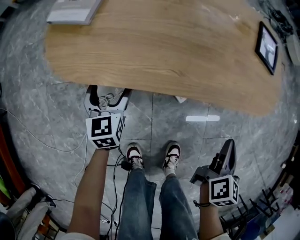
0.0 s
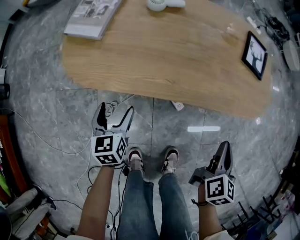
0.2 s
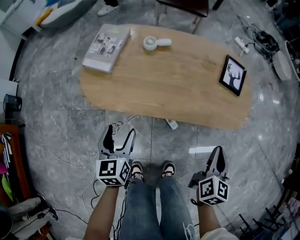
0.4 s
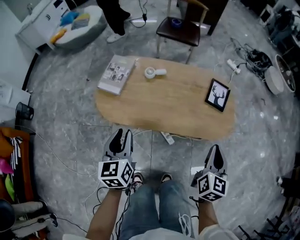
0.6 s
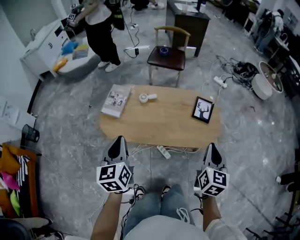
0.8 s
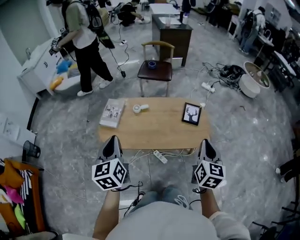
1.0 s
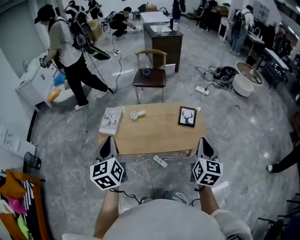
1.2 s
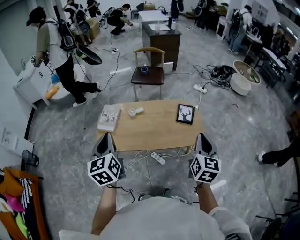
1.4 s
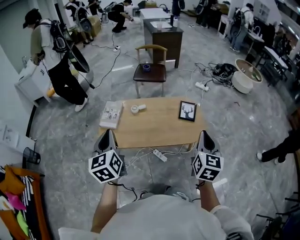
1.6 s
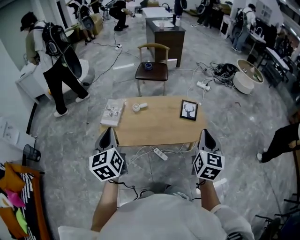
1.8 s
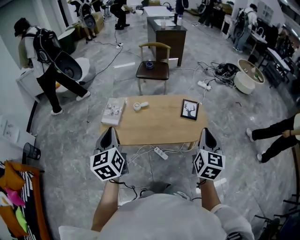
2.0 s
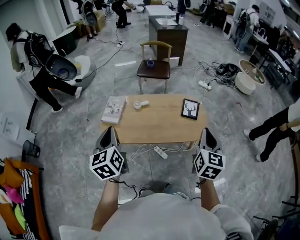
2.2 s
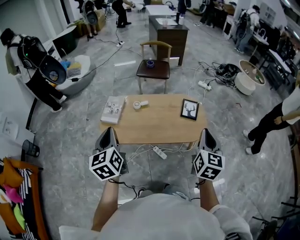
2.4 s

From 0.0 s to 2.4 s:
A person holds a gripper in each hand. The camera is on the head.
From 0.0 s to 1.2 s: Both grippers move upward, roughly 50 cm. The right gripper turns by some 30 degrees; the left gripper rotates some 20 degrees, and closes up.
From 1.2 s to 2.4 s: The grippers move only a little.

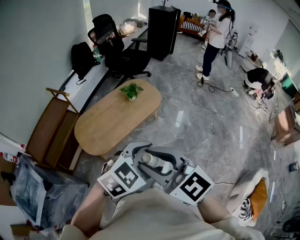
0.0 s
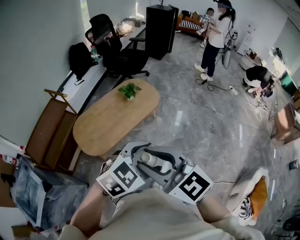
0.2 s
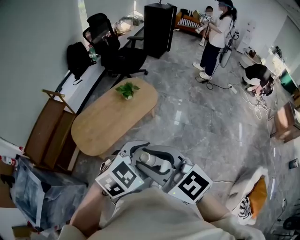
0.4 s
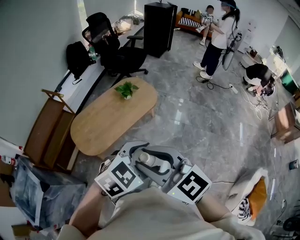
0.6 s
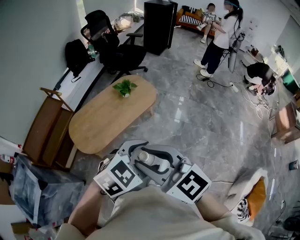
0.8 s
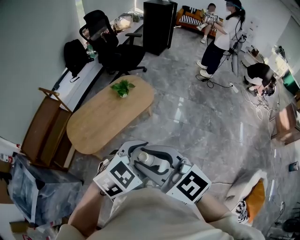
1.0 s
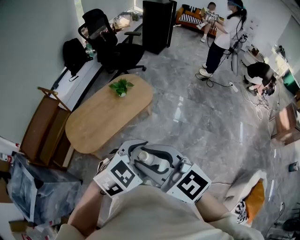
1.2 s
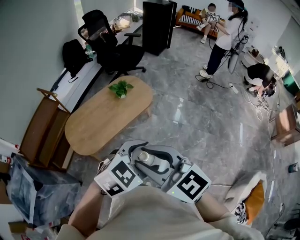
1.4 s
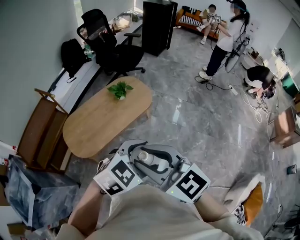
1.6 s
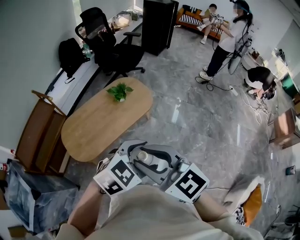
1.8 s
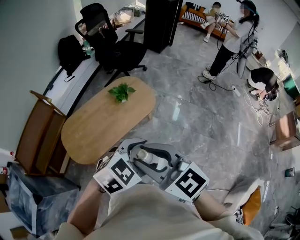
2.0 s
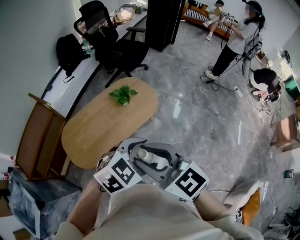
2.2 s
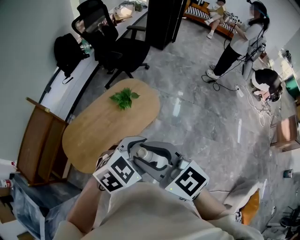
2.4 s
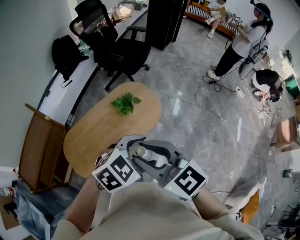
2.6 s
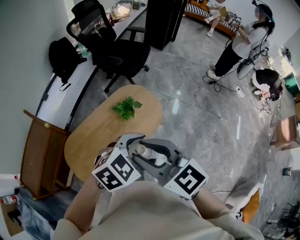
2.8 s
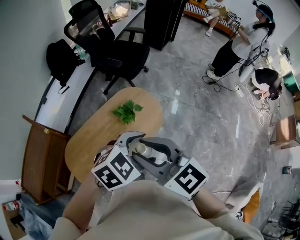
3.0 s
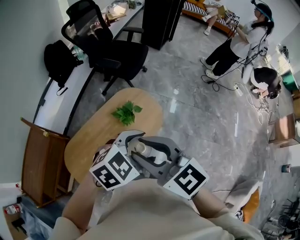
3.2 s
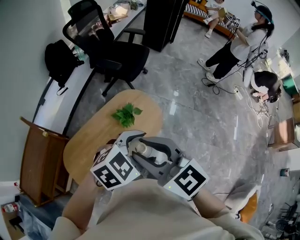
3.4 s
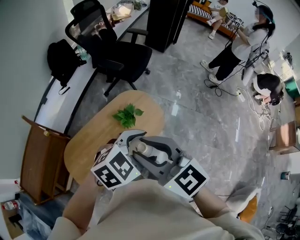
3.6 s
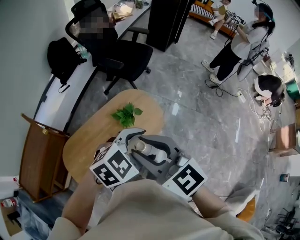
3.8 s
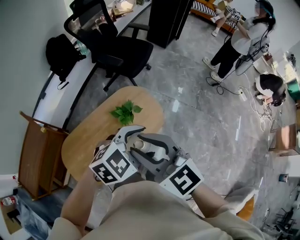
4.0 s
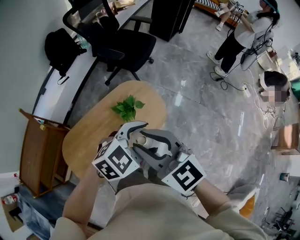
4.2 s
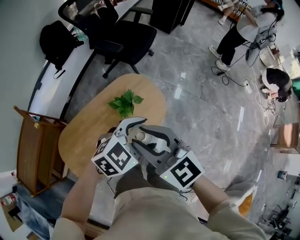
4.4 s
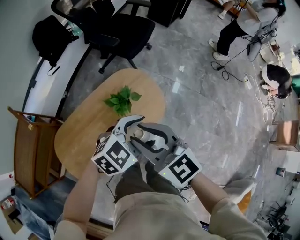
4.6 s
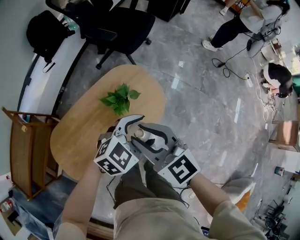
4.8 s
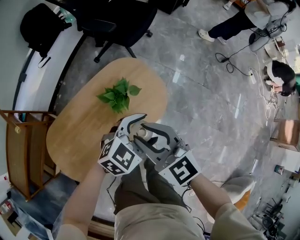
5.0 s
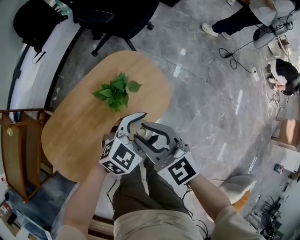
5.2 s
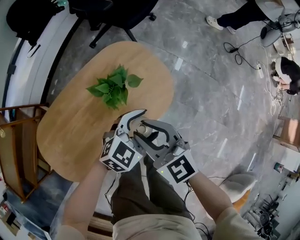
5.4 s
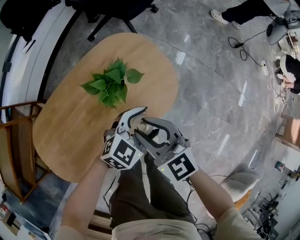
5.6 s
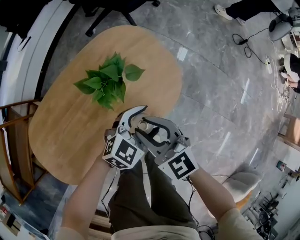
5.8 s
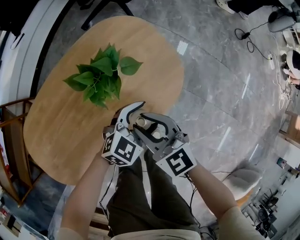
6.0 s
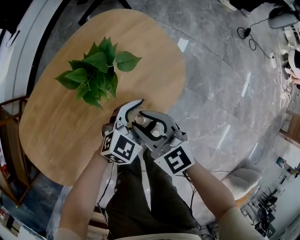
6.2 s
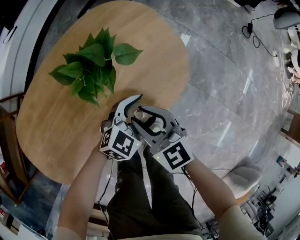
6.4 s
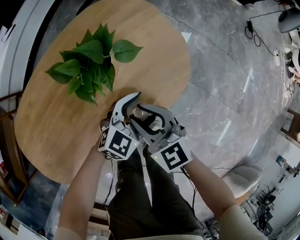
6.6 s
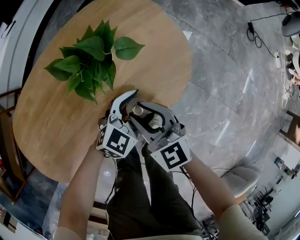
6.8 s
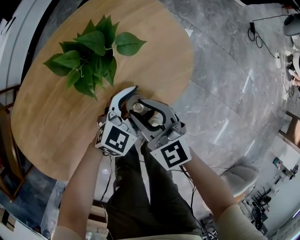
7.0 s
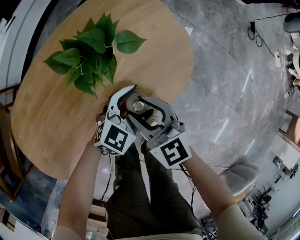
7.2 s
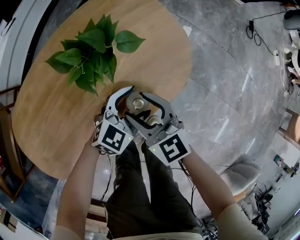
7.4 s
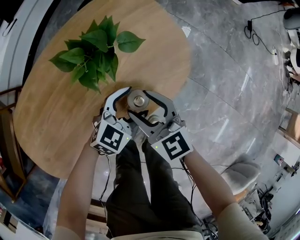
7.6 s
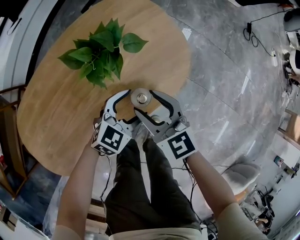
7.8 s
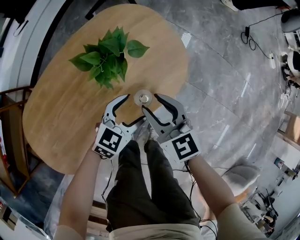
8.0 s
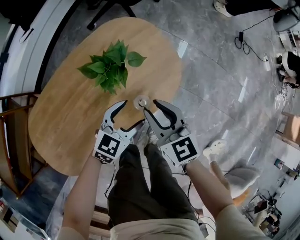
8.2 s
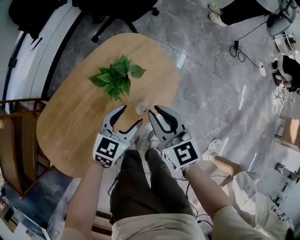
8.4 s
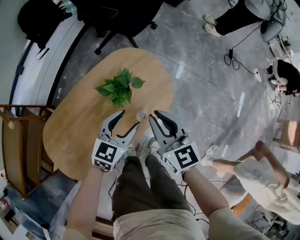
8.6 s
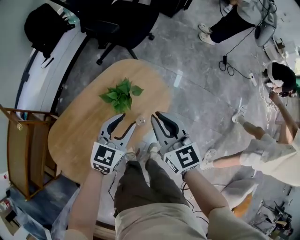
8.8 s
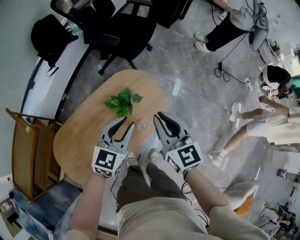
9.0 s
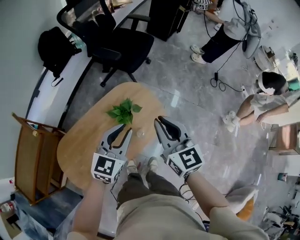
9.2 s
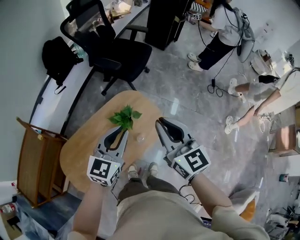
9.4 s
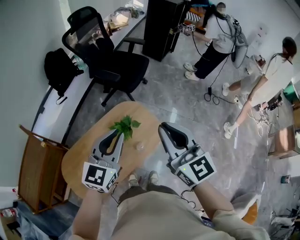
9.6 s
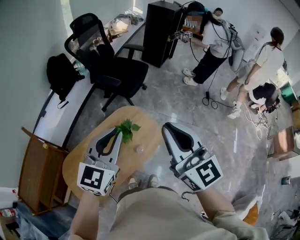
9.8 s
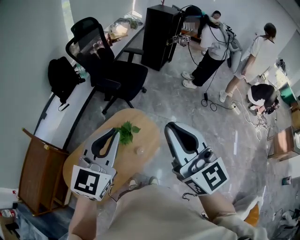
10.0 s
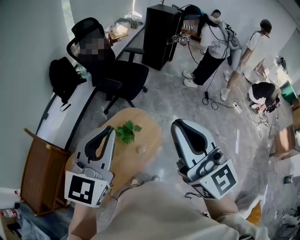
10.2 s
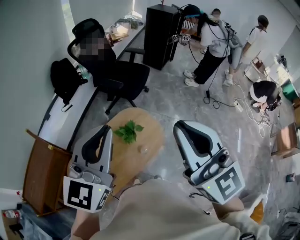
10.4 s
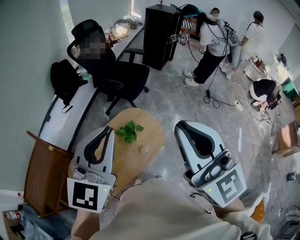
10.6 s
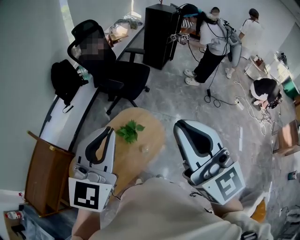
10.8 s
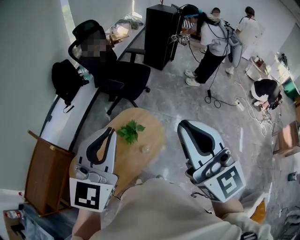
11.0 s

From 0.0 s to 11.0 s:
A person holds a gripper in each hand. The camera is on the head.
From 0.0 s to 1.6 s: Both grippers move forward and to the right, some 15 cm.
From 1.6 s to 3.2 s: The pair of grippers is taken forward and to the left, some 40 cm.
From 3.2 s to 4.8 s: Both grippers travel together downward and forward, approximately 25 cm.
From 4.8 s to 6.2 s: Both grippers travel together downward, some 40 cm.
From 6.2 s to 7.8 s: The left gripper moves approximately 5 cm. Meanwhile the right gripper opens its fingers.
From 7.8 s to 9.4 s: Both grippers move upward, approximately 50 cm. The right gripper changes its angle by some 20 degrees, and closes up. The left gripper turns by roughly 30 degrees, and closes.
From 9.4 s to 11.0 s: The left gripper travels upward by approximately 25 cm. The right gripper goes about 25 cm upward and backward.

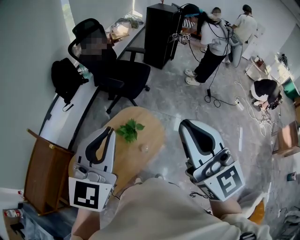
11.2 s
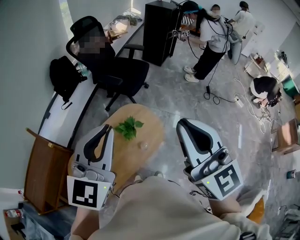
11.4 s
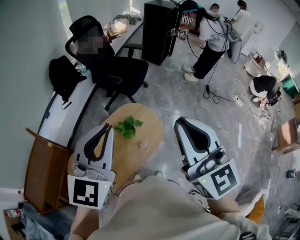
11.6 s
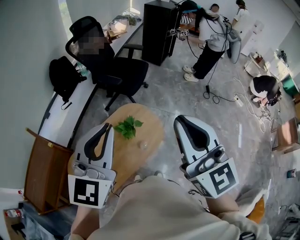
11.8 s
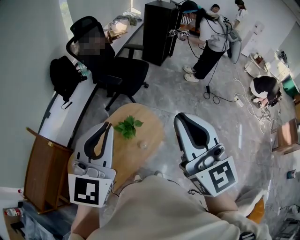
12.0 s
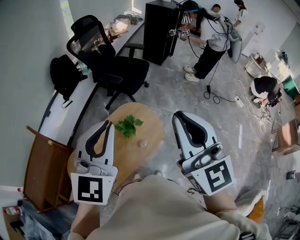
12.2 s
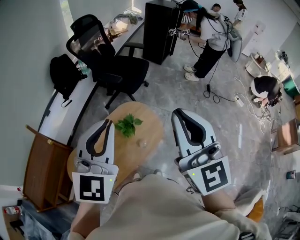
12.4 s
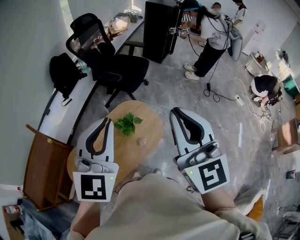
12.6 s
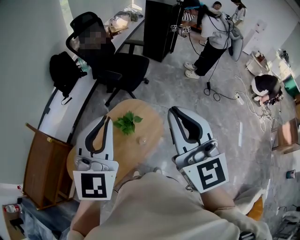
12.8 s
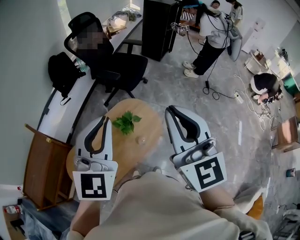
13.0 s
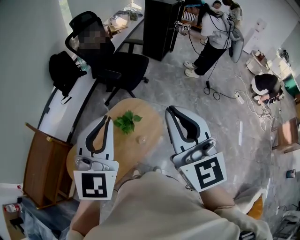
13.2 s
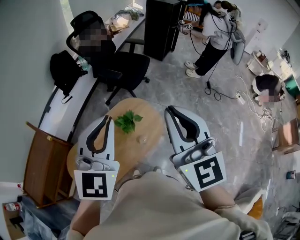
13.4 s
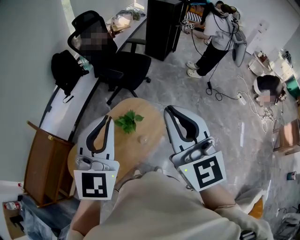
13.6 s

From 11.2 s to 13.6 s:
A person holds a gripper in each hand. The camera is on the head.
From 11.2 s to 13.6 s: The grippers stay close to where they were, moving slightly.

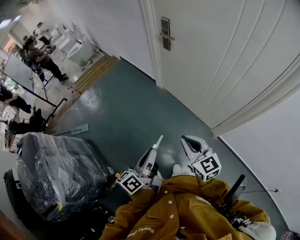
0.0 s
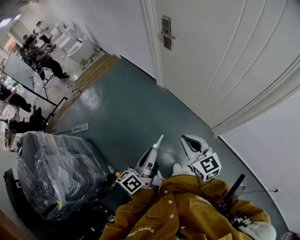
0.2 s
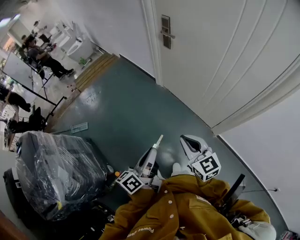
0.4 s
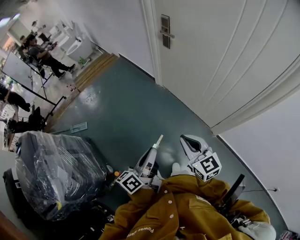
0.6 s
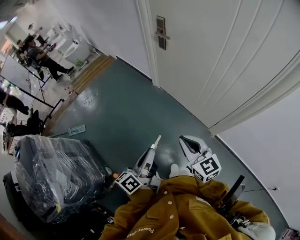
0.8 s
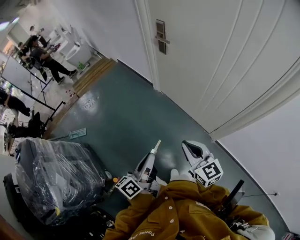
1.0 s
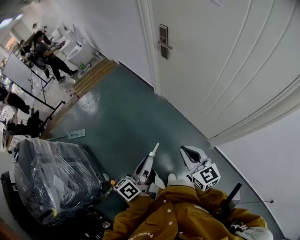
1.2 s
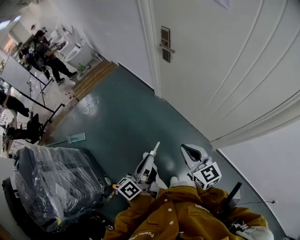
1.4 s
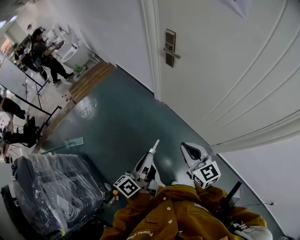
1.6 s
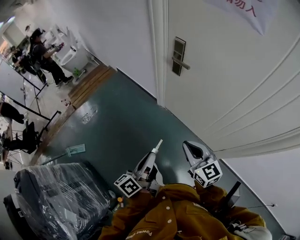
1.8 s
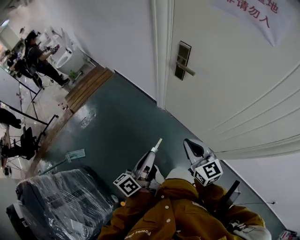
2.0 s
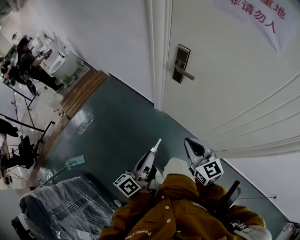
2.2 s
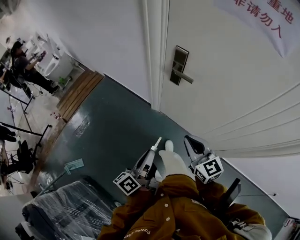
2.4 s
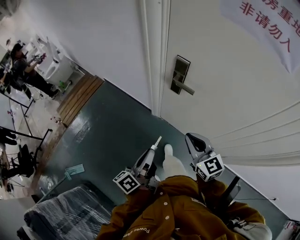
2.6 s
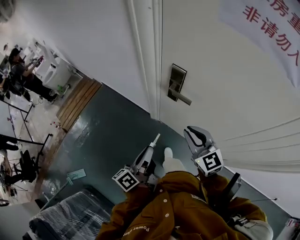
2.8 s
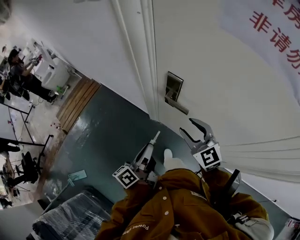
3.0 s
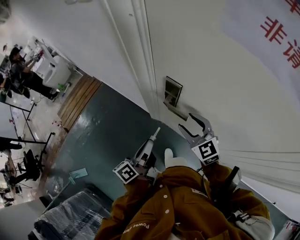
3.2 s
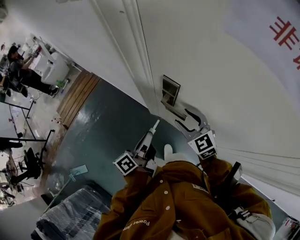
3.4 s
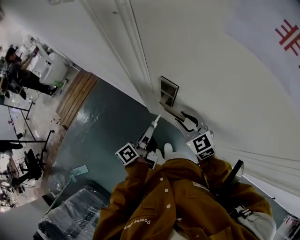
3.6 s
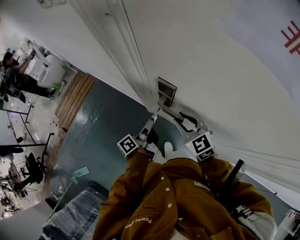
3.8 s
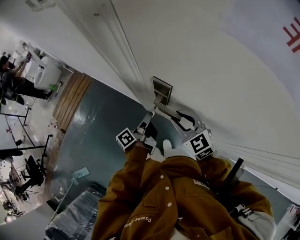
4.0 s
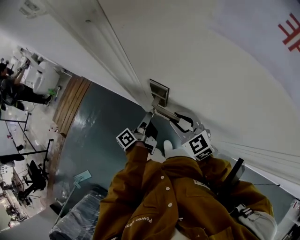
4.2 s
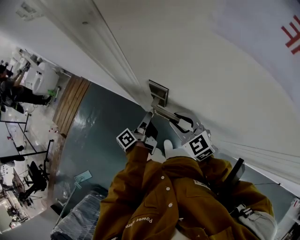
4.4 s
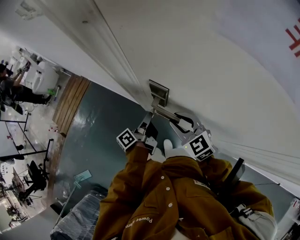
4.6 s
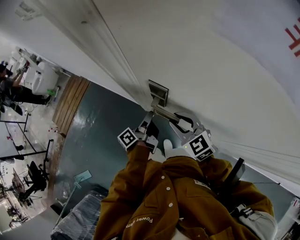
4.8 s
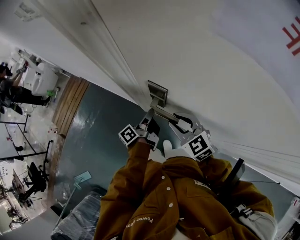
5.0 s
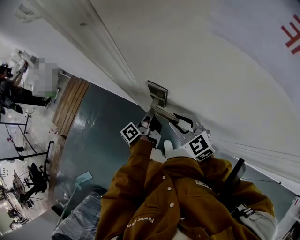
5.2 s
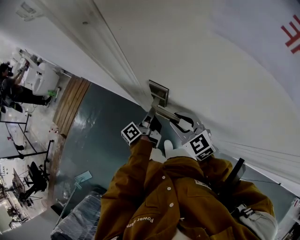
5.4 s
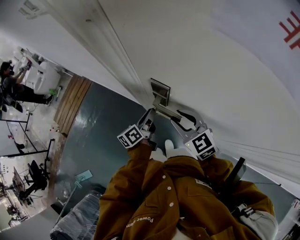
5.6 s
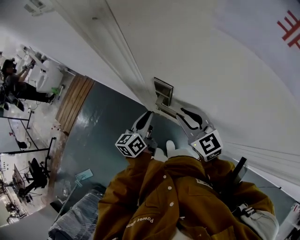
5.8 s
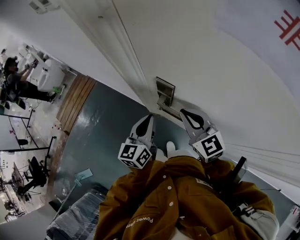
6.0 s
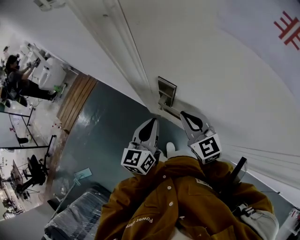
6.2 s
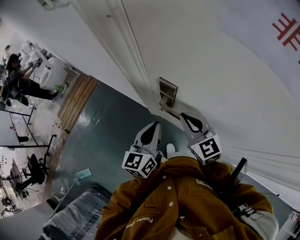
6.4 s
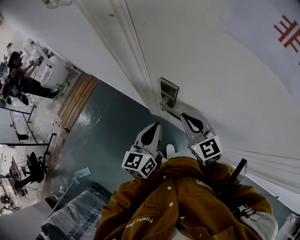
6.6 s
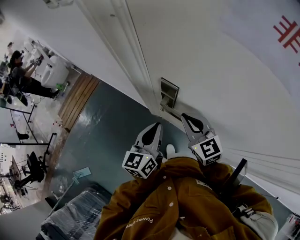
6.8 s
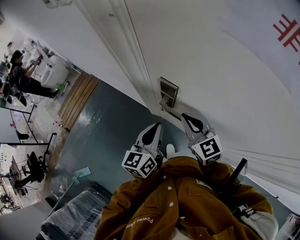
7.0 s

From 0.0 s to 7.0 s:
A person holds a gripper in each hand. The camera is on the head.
From 0.0 s to 1.4 s: The grippers both shift forward by roughly 10 cm.
From 1.4 s to 2.8 s: Both grippers are carried forward, about 50 cm.
From 2.8 s to 4.2 s: The right gripper is displaced forward and downward by approximately 15 cm, and opens up. Meanwhile the left gripper goes approximately 30 cm forward, to the right and downward, and rotates about 20 degrees.
From 4.2 s to 5.6 s: The left gripper rotates roughly 30 degrees.
From 5.6 s to 7.0 s: The left gripper travels upward and backward by roughly 15 cm, and swivels roughly 40 degrees. The right gripper closes its fingers.

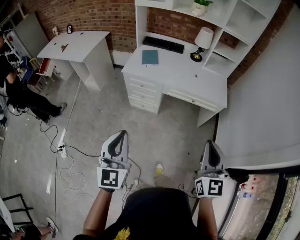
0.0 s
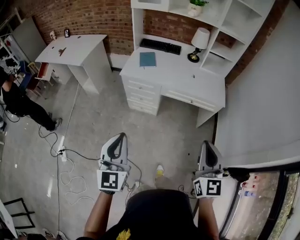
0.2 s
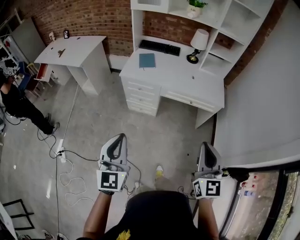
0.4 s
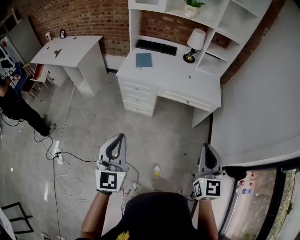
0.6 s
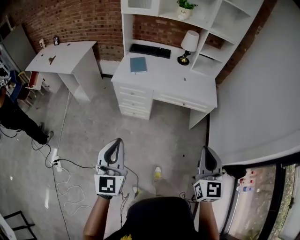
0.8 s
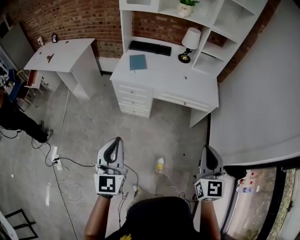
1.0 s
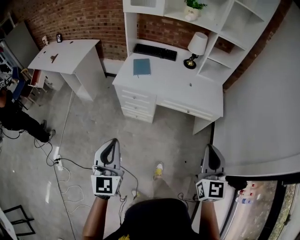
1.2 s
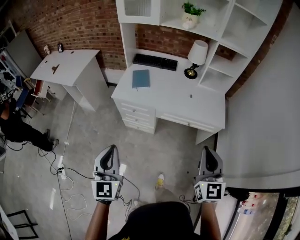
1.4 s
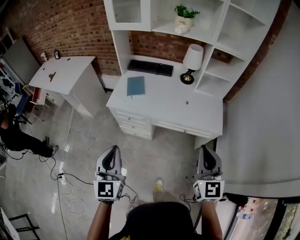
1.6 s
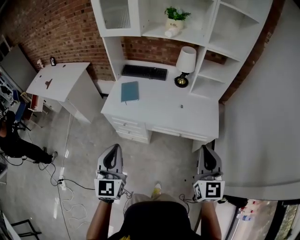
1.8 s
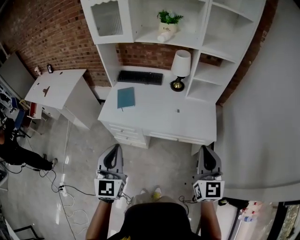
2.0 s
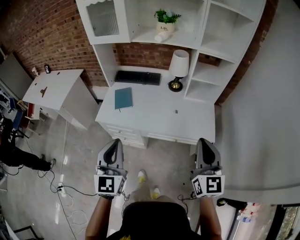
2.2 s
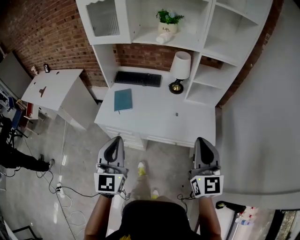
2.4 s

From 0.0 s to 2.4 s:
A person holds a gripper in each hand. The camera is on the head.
From 0.0 s to 1.2 s: Both grippers travel together forward, roughly 10 cm.
From 1.2 s to 2.4 s: The right gripper moves forward, some 30 cm. Meanwhile the left gripper moves forward and to the right, approximately 35 cm.
